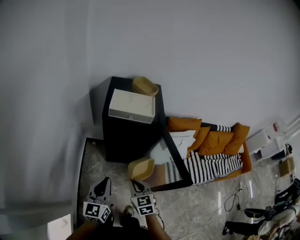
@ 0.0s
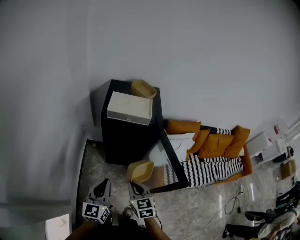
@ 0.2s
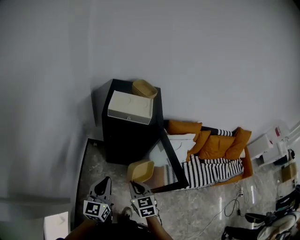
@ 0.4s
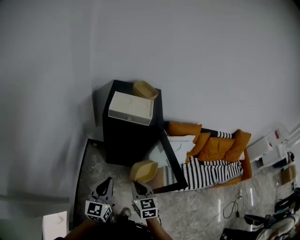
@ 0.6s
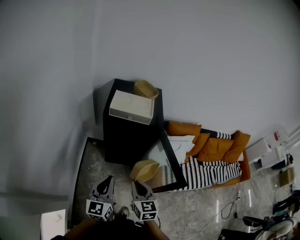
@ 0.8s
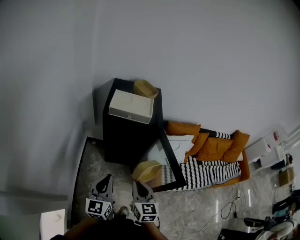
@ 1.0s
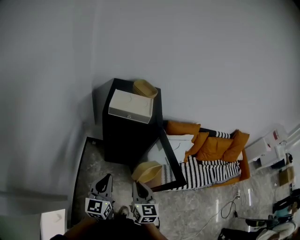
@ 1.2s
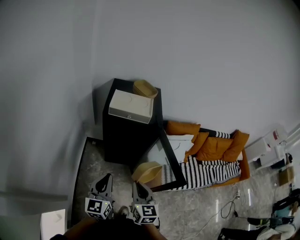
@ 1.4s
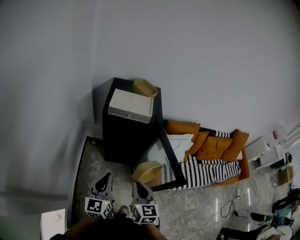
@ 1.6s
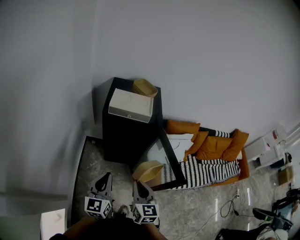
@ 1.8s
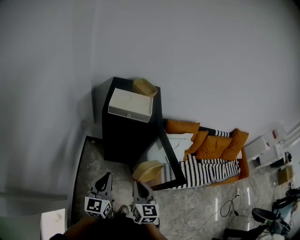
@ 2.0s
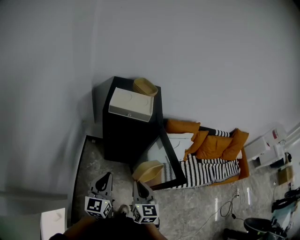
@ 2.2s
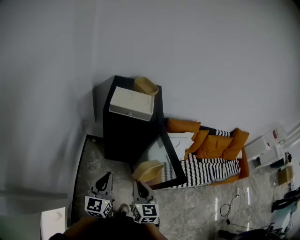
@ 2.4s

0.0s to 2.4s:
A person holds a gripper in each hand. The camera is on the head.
0.0s to 1.2s: The right gripper moves upward, roughly 10 cm, and turns by some 20 degrees.
1.2s to 2.4s: Both grippers stay put.

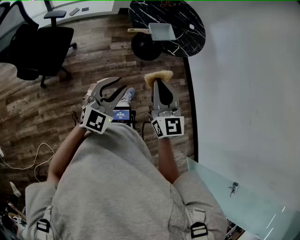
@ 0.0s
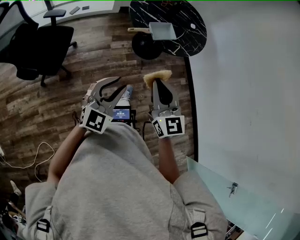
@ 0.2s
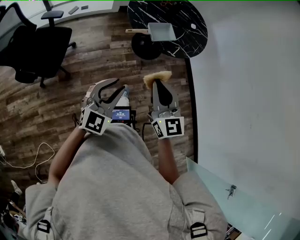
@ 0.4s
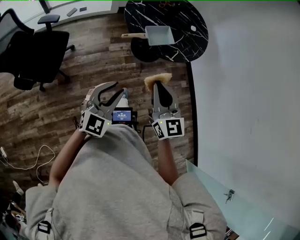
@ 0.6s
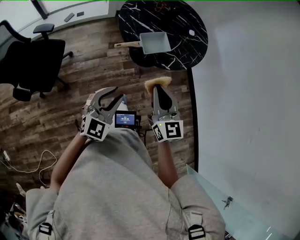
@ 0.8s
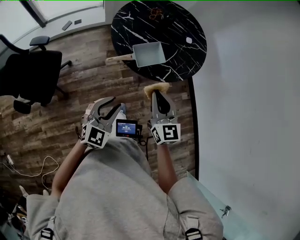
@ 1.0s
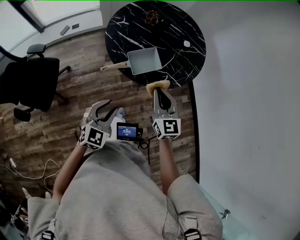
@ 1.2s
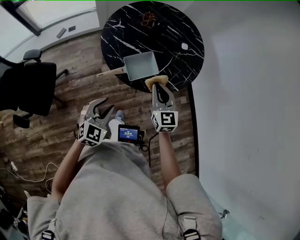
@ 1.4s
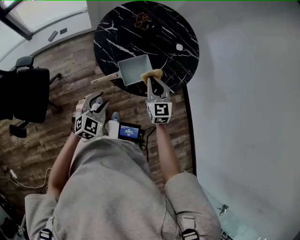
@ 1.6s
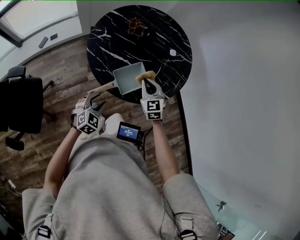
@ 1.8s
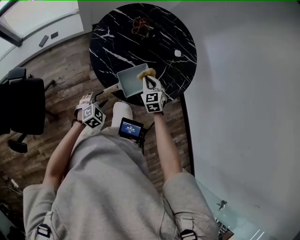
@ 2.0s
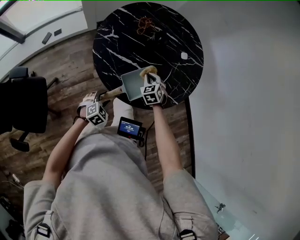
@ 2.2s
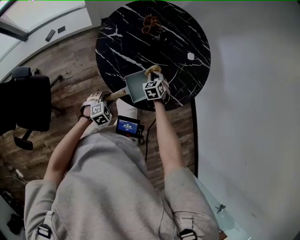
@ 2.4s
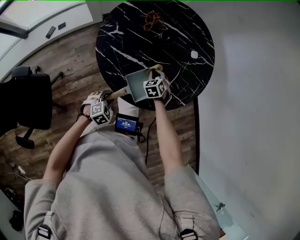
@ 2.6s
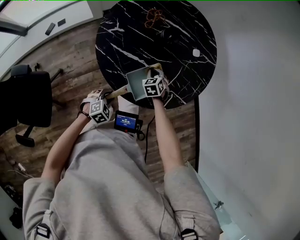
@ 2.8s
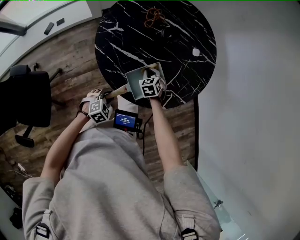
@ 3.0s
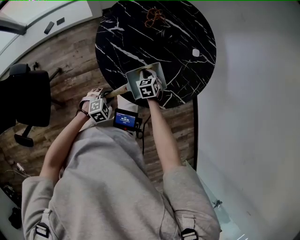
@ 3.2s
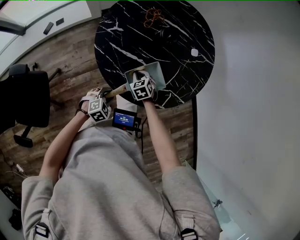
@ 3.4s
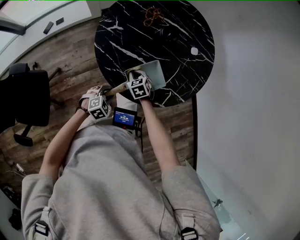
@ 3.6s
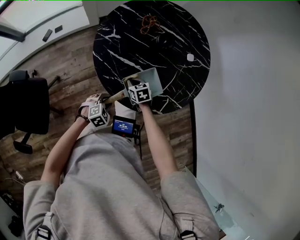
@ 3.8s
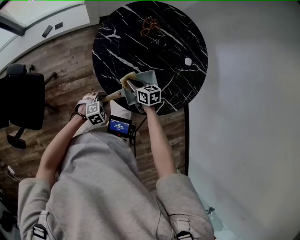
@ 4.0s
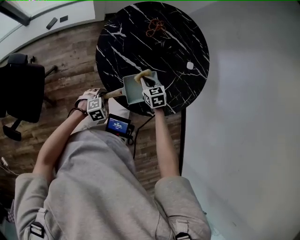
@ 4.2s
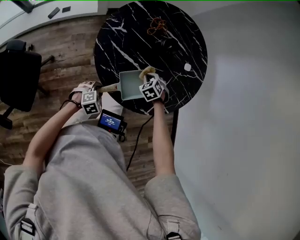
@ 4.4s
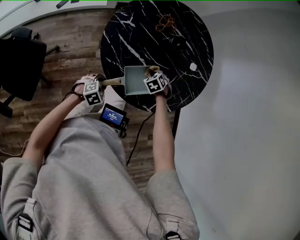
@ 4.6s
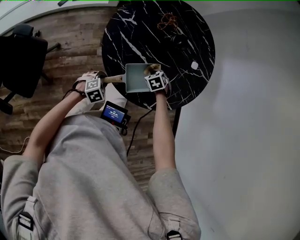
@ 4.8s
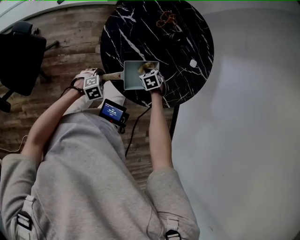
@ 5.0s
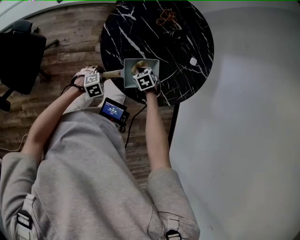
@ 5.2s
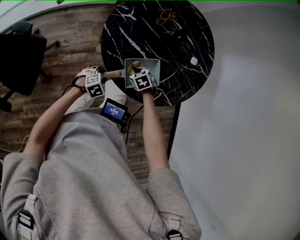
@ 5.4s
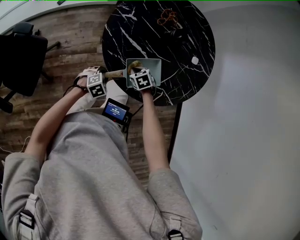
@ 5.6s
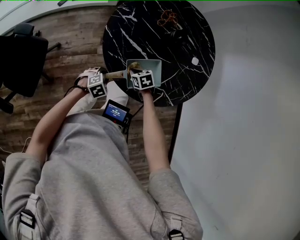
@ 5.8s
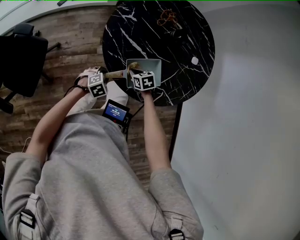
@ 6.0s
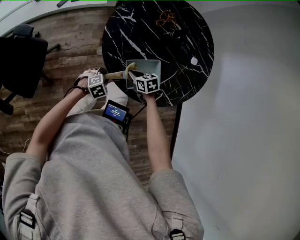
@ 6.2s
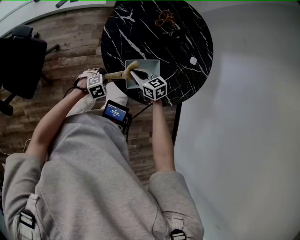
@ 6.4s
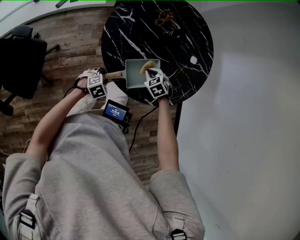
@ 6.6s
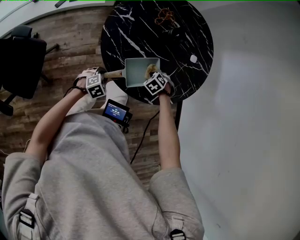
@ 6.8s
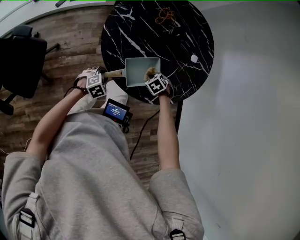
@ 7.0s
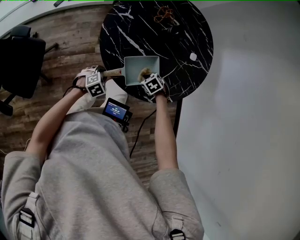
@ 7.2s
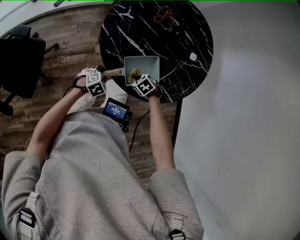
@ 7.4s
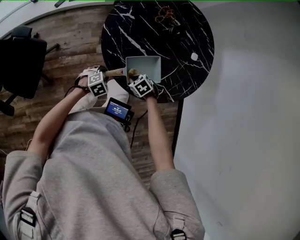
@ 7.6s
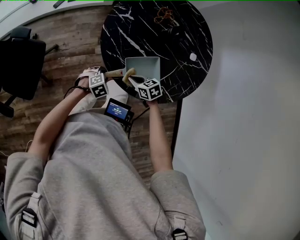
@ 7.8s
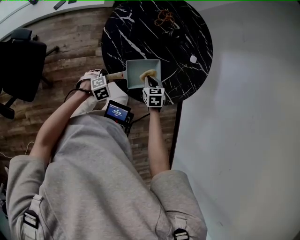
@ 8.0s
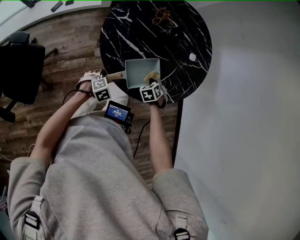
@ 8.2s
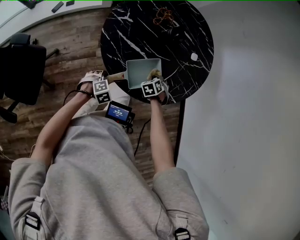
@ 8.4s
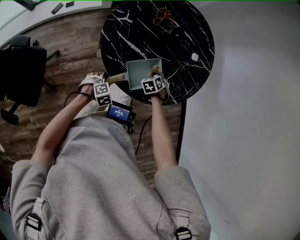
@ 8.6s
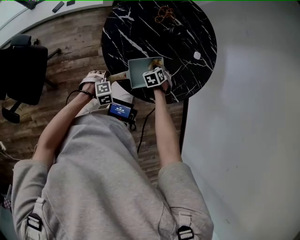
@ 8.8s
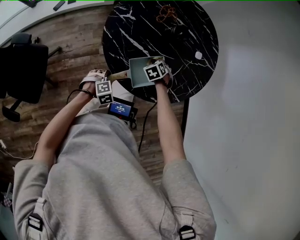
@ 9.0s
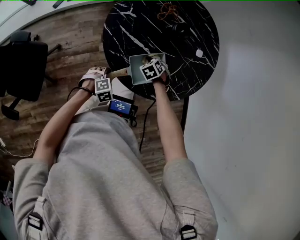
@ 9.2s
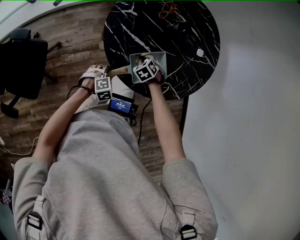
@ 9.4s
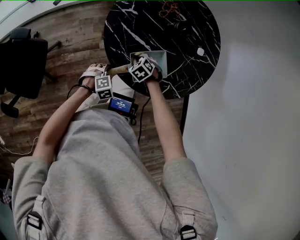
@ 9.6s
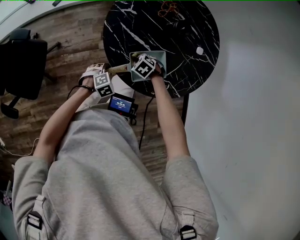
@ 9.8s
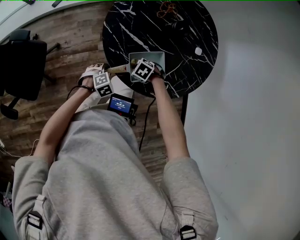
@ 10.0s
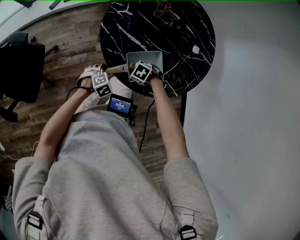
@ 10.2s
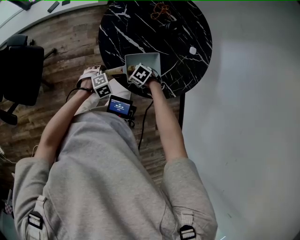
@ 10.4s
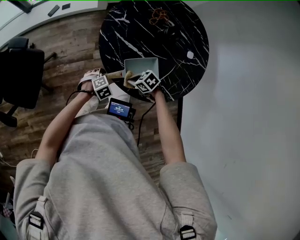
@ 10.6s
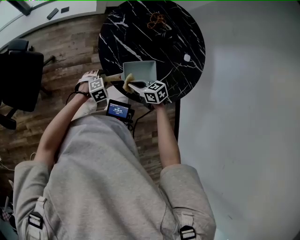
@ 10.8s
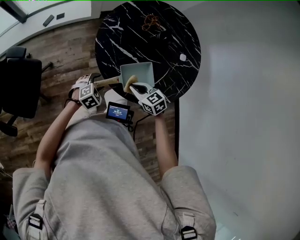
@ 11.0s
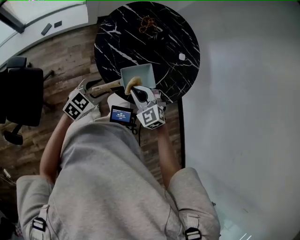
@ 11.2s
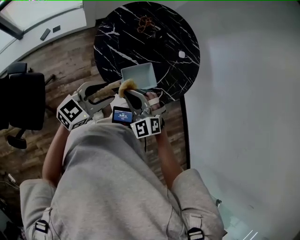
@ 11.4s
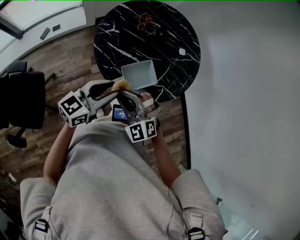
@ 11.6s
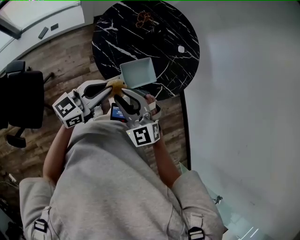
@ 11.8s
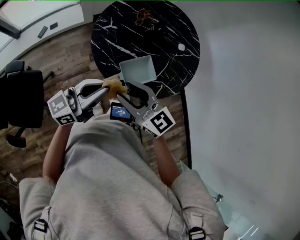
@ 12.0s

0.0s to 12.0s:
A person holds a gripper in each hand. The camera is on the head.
0.0s to 1.6s: The left gripper goes about 40 cm forward and downward, and swivels roughly 30 degrees; the right gripper moves forward, about 50 cm.
1.6s to 3.0s: The two grippers go approximately 25 cm downward and forward. The left gripper turns by about 30 degrees, while the right gripper tilts its fingers some 40 degrees downward.
3.0s to 4.4s: The right gripper swivels roughly 30 degrees.
4.4s to 6.0s: The right gripper shifts by approximately 10 cm, and changes its angle by about 40 degrees.
6.0s to 7.6s: The right gripper travels upward and back again, about 10 cm each way, and rotates about 30 degrees.
7.6s to 9.0s: The right gripper ends up approximately 15 cm from where it was, and changes its angle by about 30 degrees.
9.0s to 10.4s: The right gripper moves about 15 cm, and turns by approximately 40 degrees.
10.4s to 12.0s: The grippers both shift upward by roughly 35 cm. The left gripper tips its fingers upward by some 80 degrees, and opens, then closes again. The right gripper tilts its fingers some 60 degrees upward, and opens.

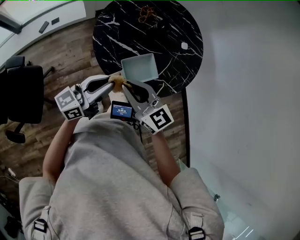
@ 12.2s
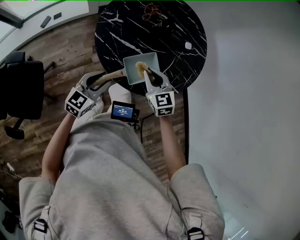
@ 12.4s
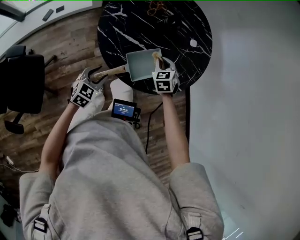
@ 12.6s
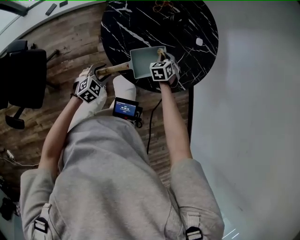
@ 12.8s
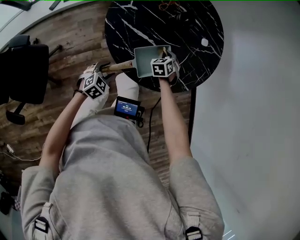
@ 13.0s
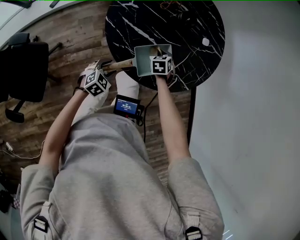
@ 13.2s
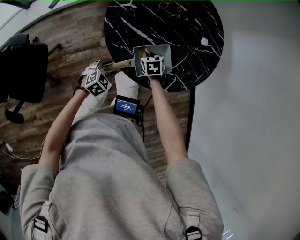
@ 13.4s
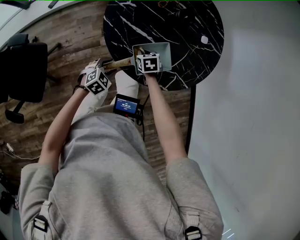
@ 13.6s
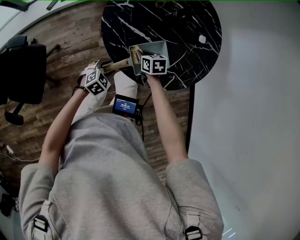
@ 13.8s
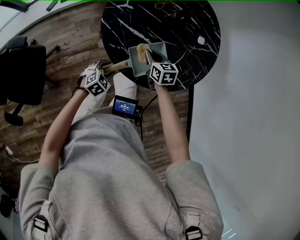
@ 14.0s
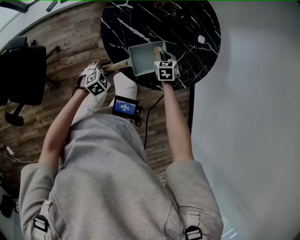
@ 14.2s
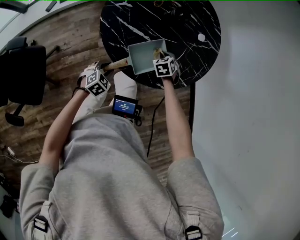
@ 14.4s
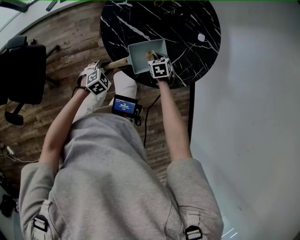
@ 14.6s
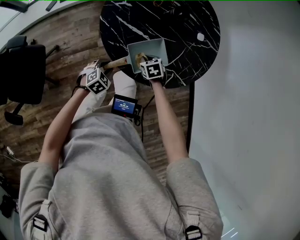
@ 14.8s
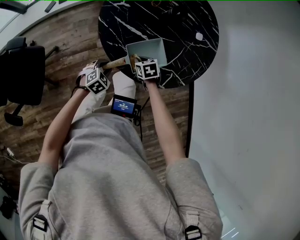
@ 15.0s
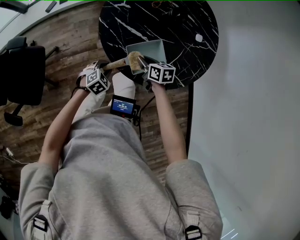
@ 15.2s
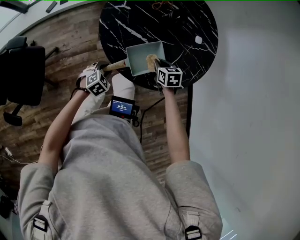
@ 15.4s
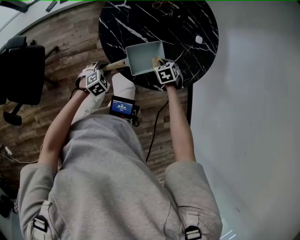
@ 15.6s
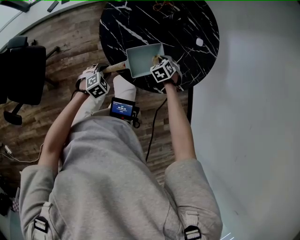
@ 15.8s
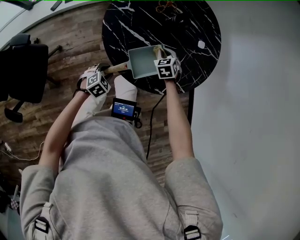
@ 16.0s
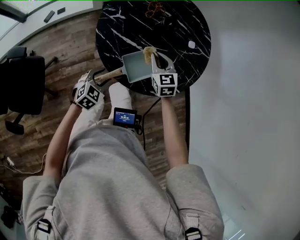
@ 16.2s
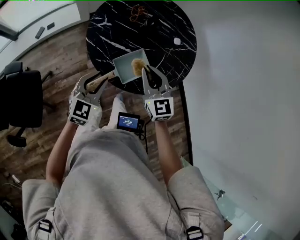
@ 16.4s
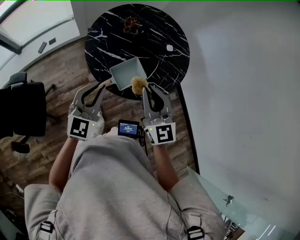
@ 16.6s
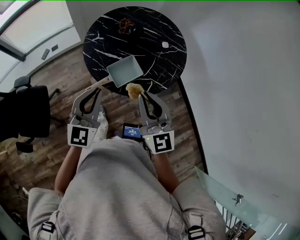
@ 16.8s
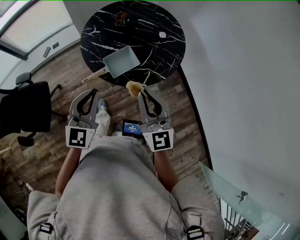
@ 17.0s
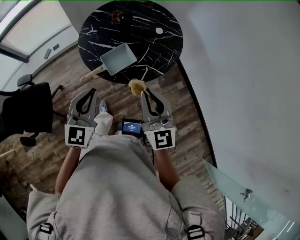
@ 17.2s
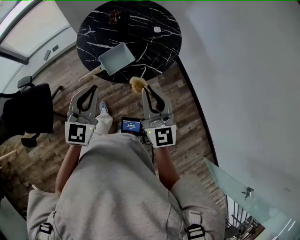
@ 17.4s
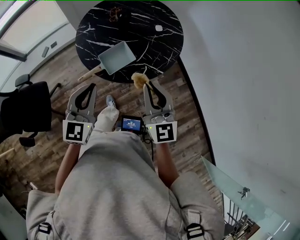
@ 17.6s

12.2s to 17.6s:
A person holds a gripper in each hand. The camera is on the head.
12.2s to 13.6s: Both grippers travel together downward, some 30 cm. The right gripper tilts its fingers some 50 degrees downward, while the left gripper angles its fingers downward, by some 60 degrees, and opens up.
13.6s to 15.0s: The right gripper moves some 10 cm upward and comes back.
15.0s to 16.2s: The left gripper moves upward, about 10 cm. Meanwhile the right gripper swings up and down, roughly 15 cm each way, with 2 reversals, and angles its fingers upward, by some 30 degrees.
16.2s to 17.6s: The right gripper travels backward, upward and to the right by about 40 cm, and tips its fingers upward by about 30 degrees. Meanwhile the left gripper goes roughly 30 cm upward, points its fingers some 30 degrees further upward, and closes.

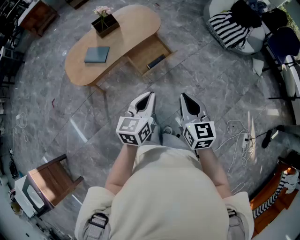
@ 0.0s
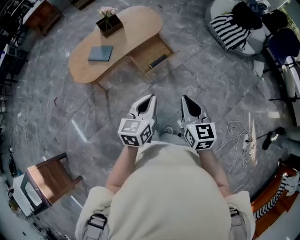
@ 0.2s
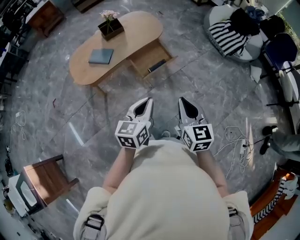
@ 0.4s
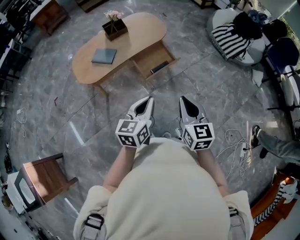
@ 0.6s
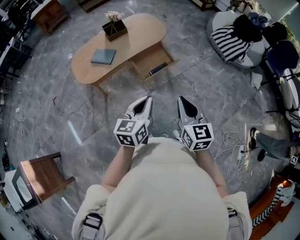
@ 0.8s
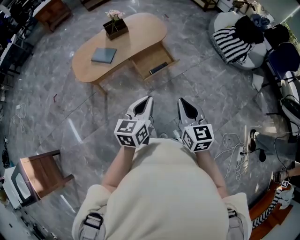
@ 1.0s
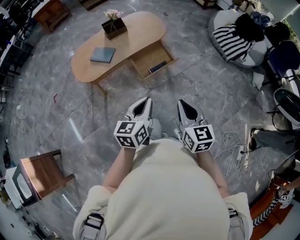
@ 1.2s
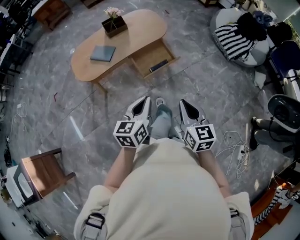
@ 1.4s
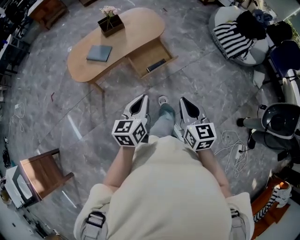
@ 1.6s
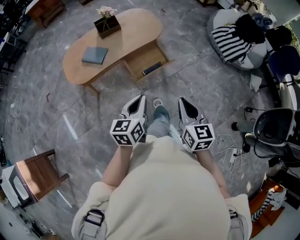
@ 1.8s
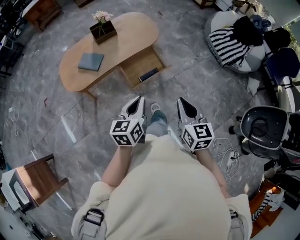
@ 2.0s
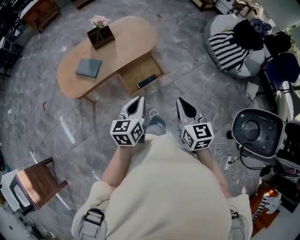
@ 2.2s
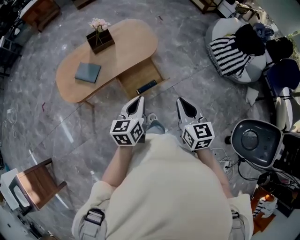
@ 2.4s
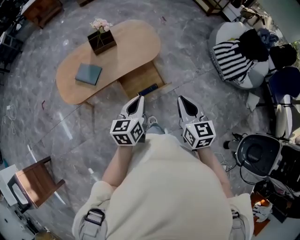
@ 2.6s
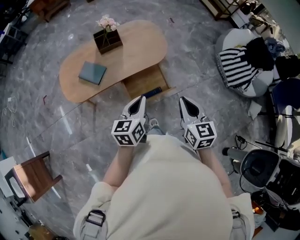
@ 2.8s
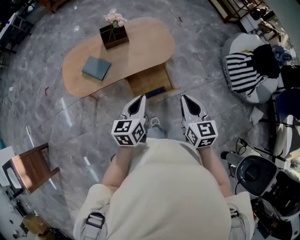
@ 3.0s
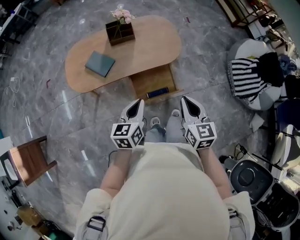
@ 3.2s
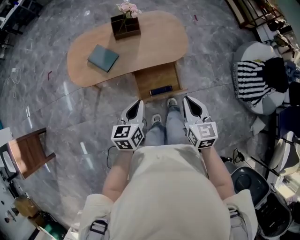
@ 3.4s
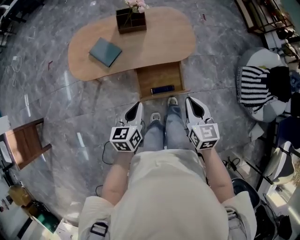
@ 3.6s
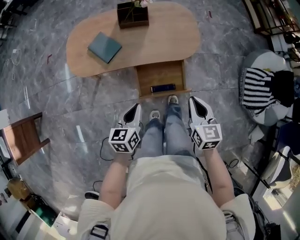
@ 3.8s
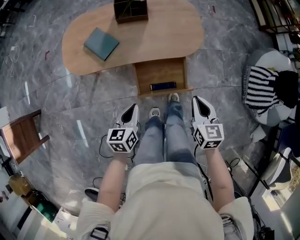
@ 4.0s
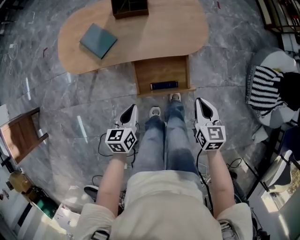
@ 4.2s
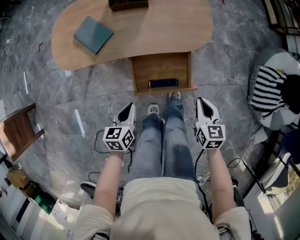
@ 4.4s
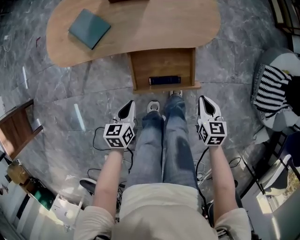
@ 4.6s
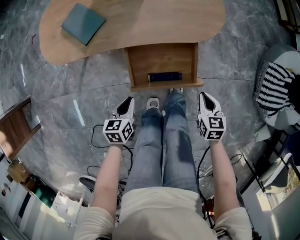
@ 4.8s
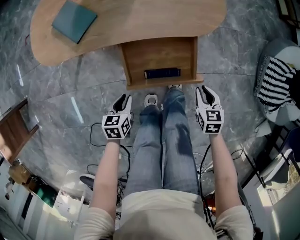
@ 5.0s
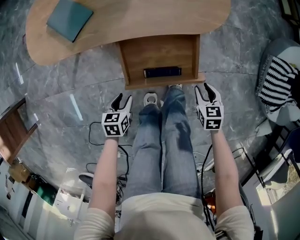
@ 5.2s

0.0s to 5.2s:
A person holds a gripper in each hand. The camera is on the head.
0.0s to 1.8s: The right gripper changes place by roughly 5 cm, while the left gripper goes backward and returns, roughly 5 cm each way.
1.8s to 3.4s: The two grippers go about 25 cm forward. The right gripper rotates approximately 20 degrees. The left gripper turns by about 20 degrees.
3.4s to 5.2s: The two grippers go roughly 40 cm downward. The right gripper tips its fingers downward by approximately 30 degrees, and opens up; the left gripper tilts its fingers some 30 degrees downward, and opens up.
